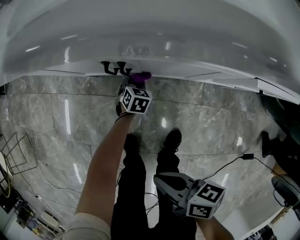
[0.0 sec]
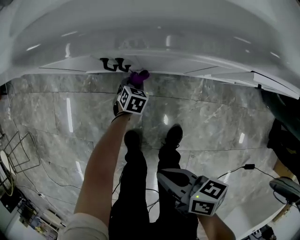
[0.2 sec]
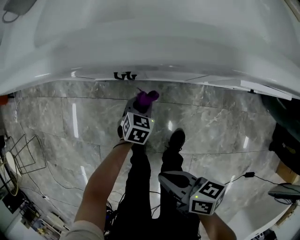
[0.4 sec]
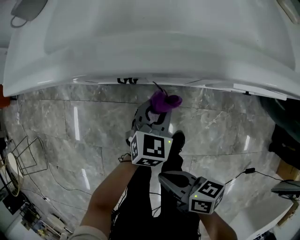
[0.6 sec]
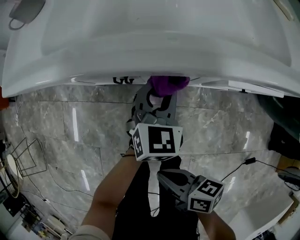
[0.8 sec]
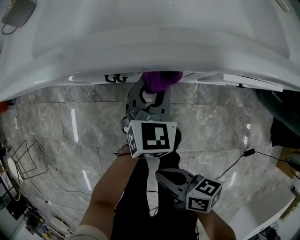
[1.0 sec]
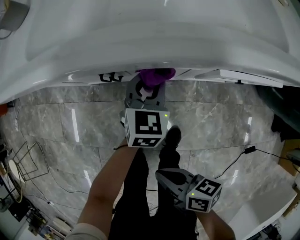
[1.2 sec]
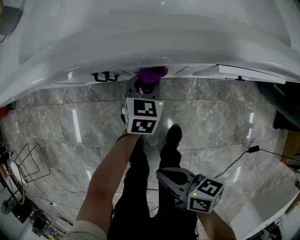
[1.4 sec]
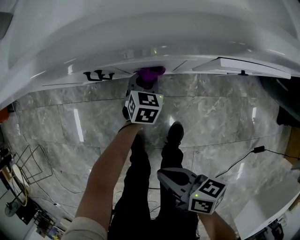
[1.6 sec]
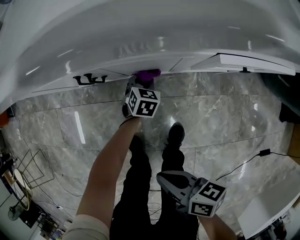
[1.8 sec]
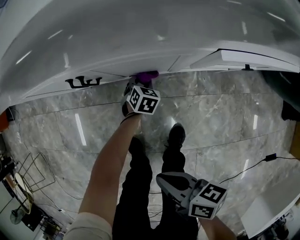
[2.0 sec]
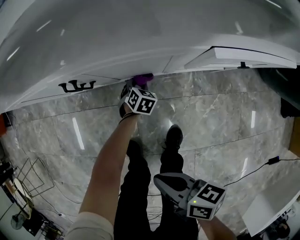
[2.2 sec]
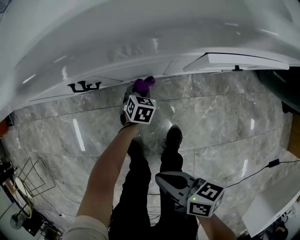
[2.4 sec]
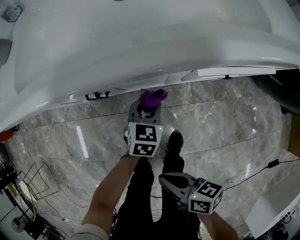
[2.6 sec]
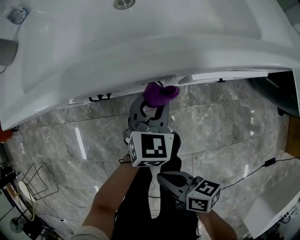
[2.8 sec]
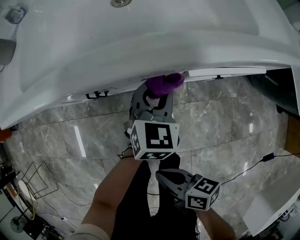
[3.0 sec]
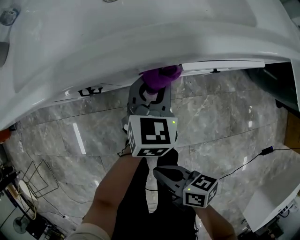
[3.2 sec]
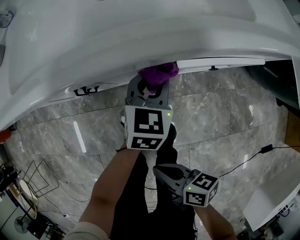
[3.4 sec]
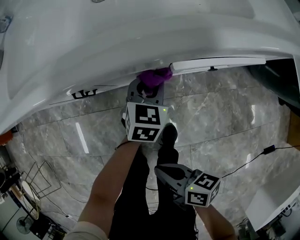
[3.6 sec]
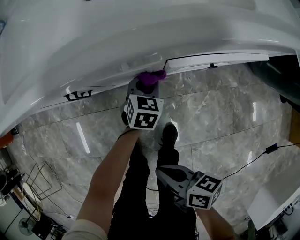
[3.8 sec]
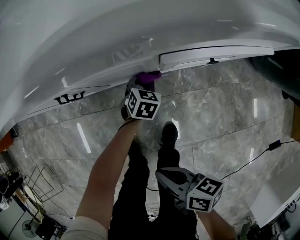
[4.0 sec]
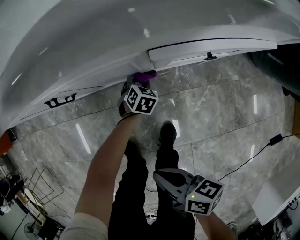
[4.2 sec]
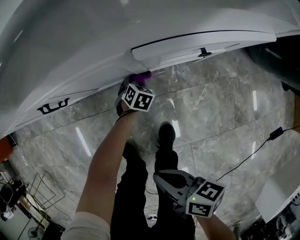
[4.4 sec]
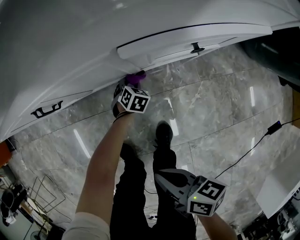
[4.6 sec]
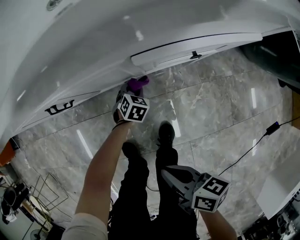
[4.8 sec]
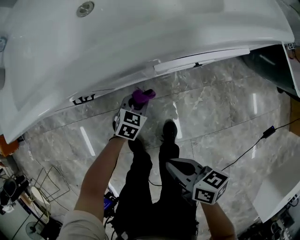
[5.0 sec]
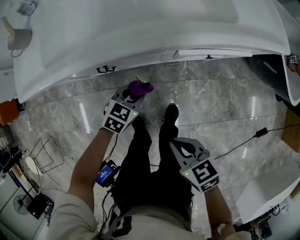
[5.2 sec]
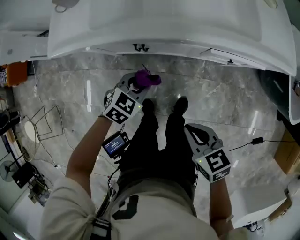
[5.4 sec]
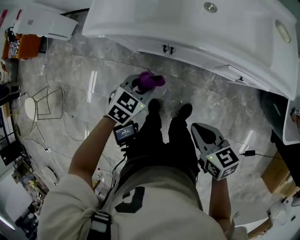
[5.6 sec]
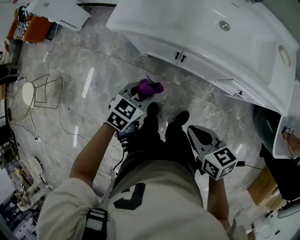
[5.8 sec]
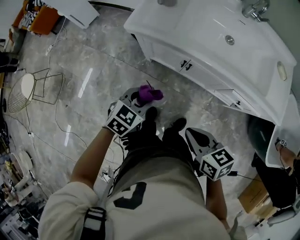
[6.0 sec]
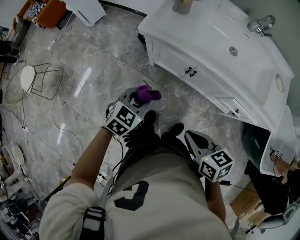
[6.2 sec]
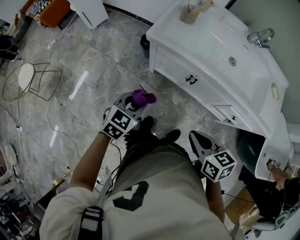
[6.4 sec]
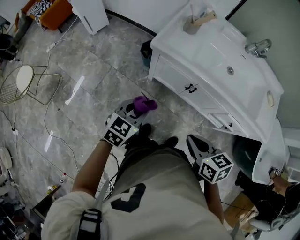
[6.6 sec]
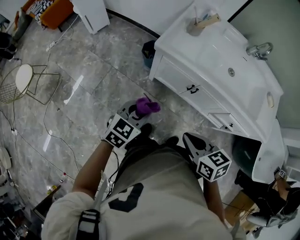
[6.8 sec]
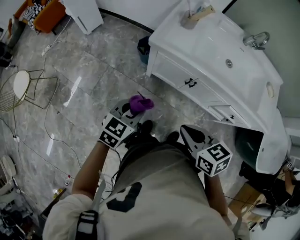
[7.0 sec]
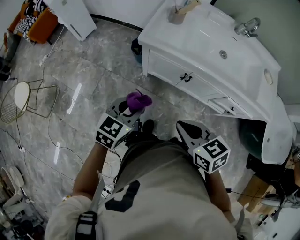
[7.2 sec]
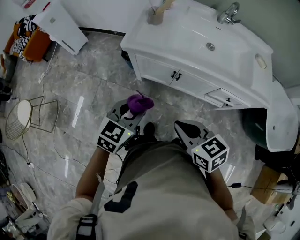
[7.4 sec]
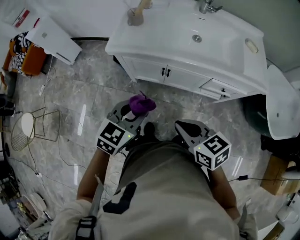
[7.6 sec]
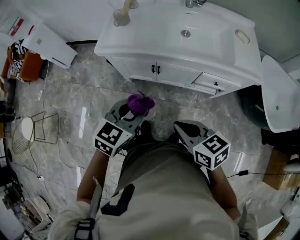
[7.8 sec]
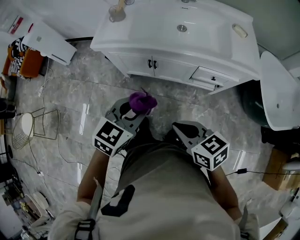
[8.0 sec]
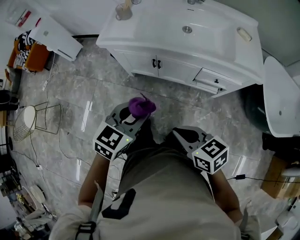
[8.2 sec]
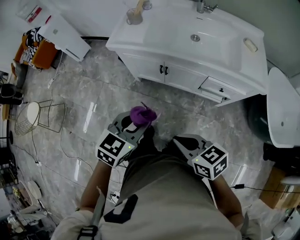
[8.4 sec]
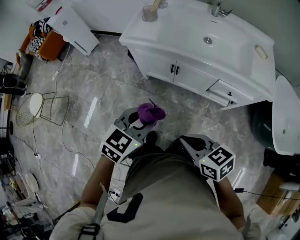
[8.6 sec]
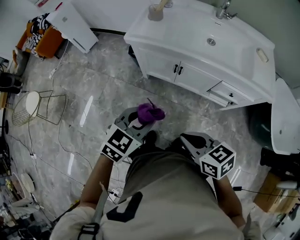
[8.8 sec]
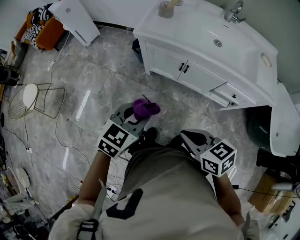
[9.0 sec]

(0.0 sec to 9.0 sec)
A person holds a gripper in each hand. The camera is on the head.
0.0 sec - 1.6 sec: The right gripper changes place by some 5 cm. The left gripper shifts roughly 20 cm upward and to the right.
1.6 sec - 3.0 sec: The left gripper heads upward and to the right, covering approximately 20 cm.
3.0 sec - 4.4 sec: The left gripper is displaced downward by about 35 cm, and tilts its fingers some 30 degrees downward; the right gripper heads downward and to the right, covering approximately 10 cm.
4.4 sec - 6.0 sec: The left gripper goes roughly 60 cm upward, and rotates approximately 30 degrees. The right gripper is displaced upward by about 35 cm, and rotates around the line of its fingers by roughly 50 degrees, counterclockwise from behind.
6.0 sec - 7.6 sec: The left gripper heads upward, covering roughly 15 cm, and reaches approximately 15 cm to the left, then returns. The right gripper heads upward, covering approximately 5 cm, and travels to the left and back again, roughly 10 cm each way.
7.6 sec - 9.0 sec: The two grippers go roughly 10 cm backward and to the left.

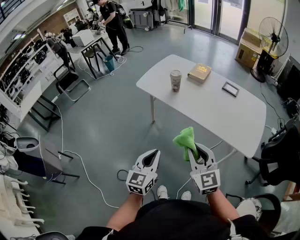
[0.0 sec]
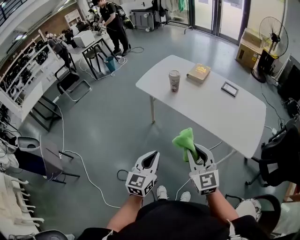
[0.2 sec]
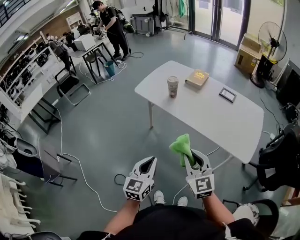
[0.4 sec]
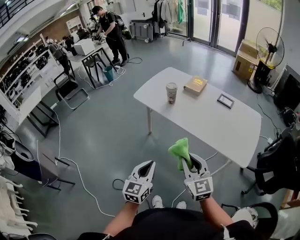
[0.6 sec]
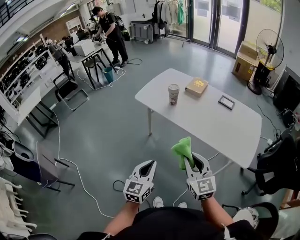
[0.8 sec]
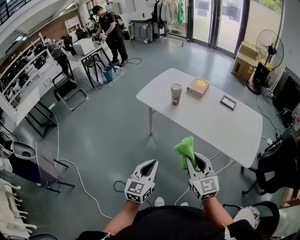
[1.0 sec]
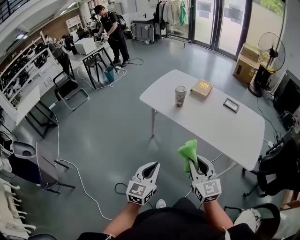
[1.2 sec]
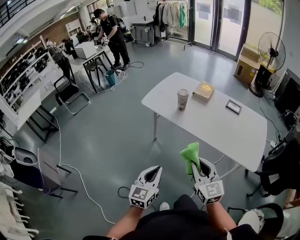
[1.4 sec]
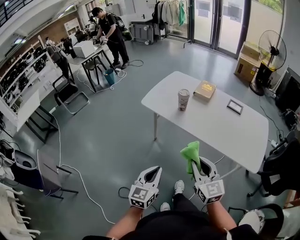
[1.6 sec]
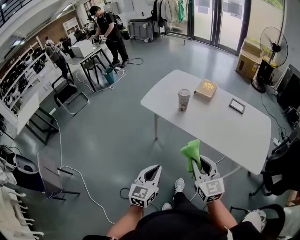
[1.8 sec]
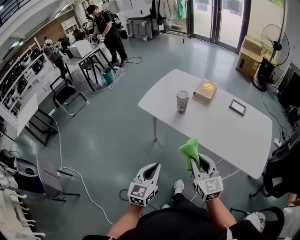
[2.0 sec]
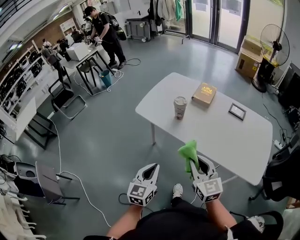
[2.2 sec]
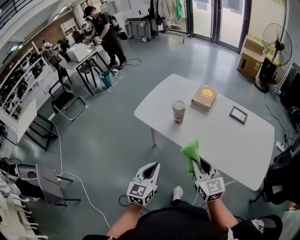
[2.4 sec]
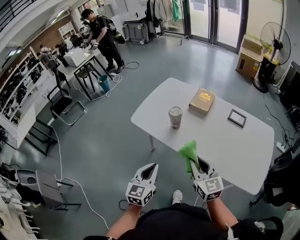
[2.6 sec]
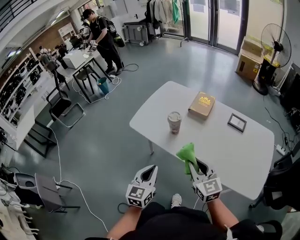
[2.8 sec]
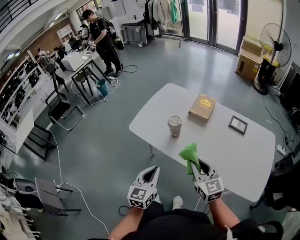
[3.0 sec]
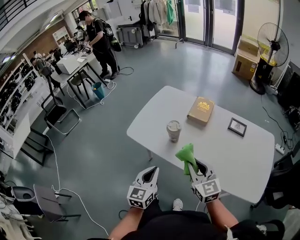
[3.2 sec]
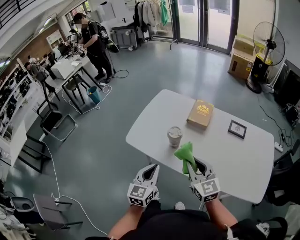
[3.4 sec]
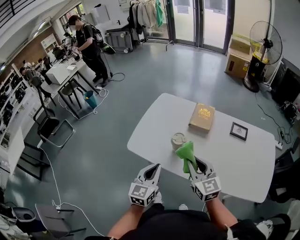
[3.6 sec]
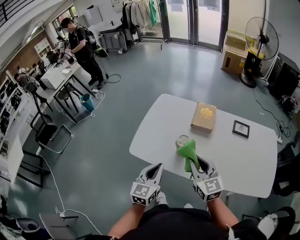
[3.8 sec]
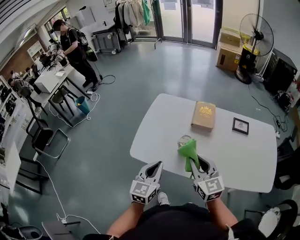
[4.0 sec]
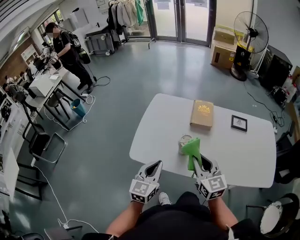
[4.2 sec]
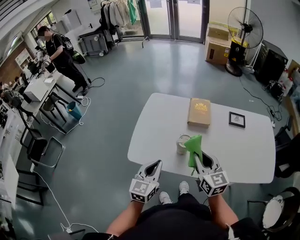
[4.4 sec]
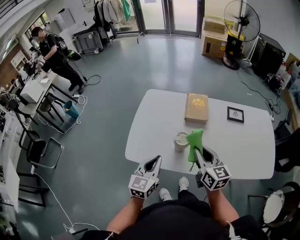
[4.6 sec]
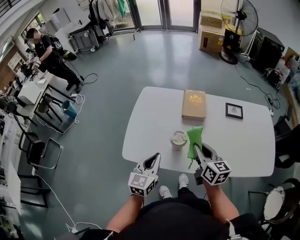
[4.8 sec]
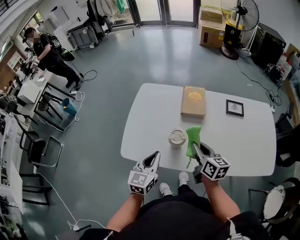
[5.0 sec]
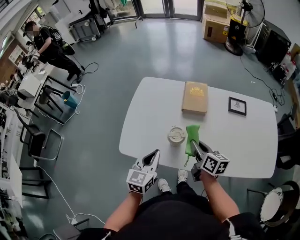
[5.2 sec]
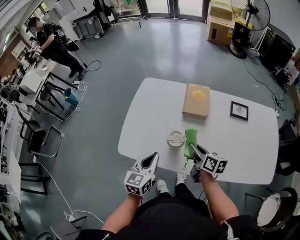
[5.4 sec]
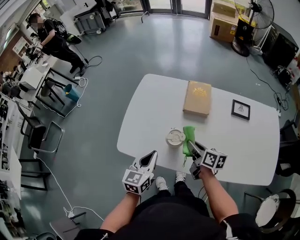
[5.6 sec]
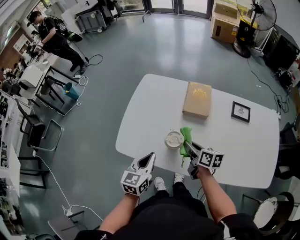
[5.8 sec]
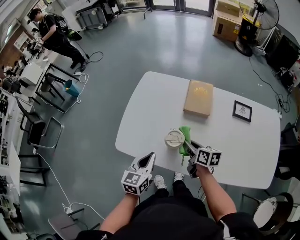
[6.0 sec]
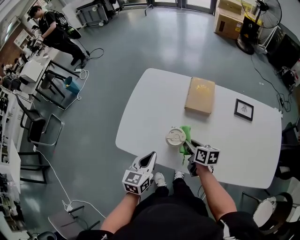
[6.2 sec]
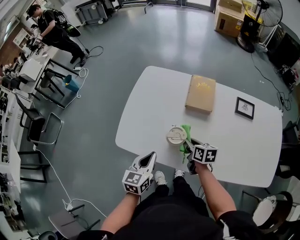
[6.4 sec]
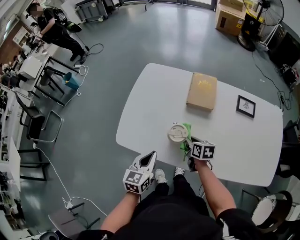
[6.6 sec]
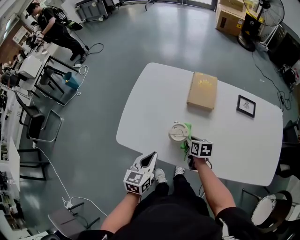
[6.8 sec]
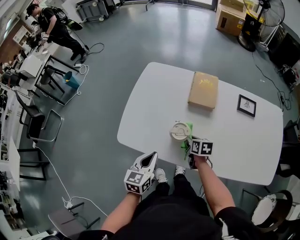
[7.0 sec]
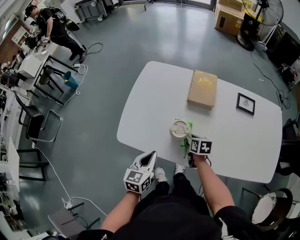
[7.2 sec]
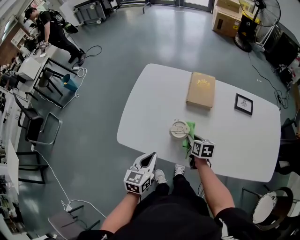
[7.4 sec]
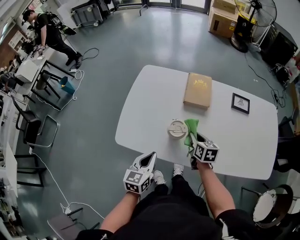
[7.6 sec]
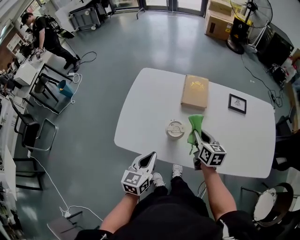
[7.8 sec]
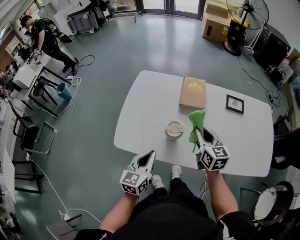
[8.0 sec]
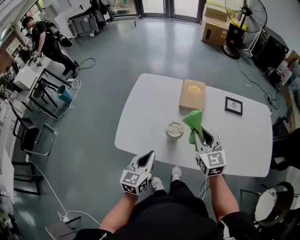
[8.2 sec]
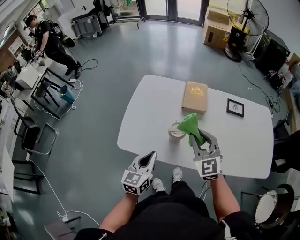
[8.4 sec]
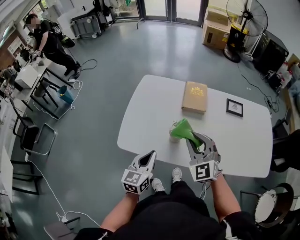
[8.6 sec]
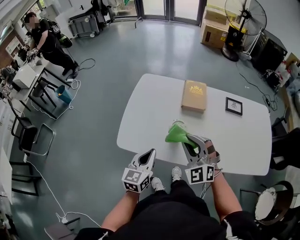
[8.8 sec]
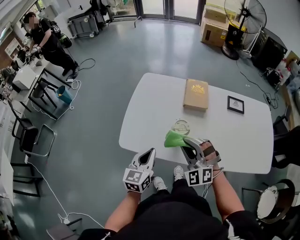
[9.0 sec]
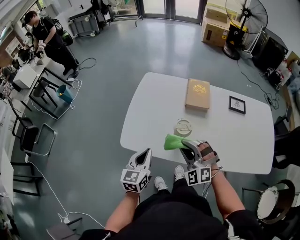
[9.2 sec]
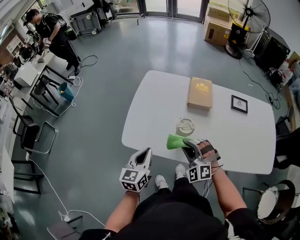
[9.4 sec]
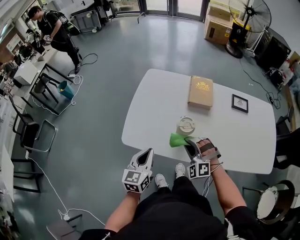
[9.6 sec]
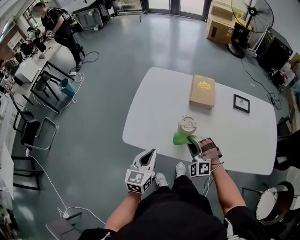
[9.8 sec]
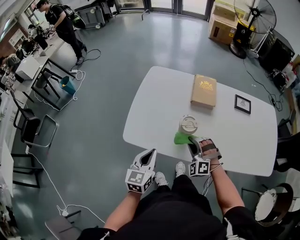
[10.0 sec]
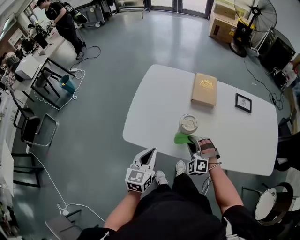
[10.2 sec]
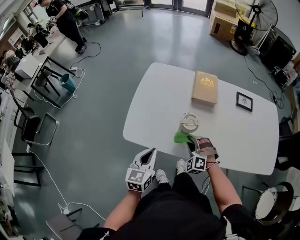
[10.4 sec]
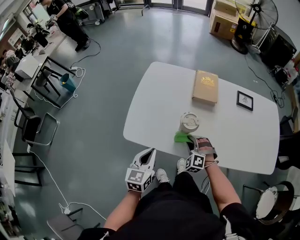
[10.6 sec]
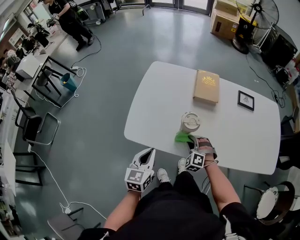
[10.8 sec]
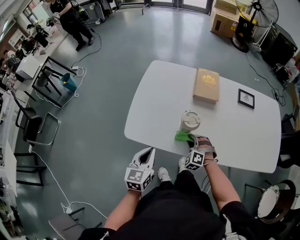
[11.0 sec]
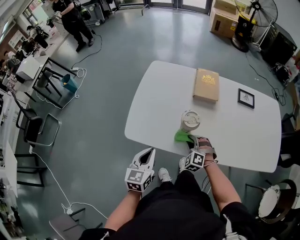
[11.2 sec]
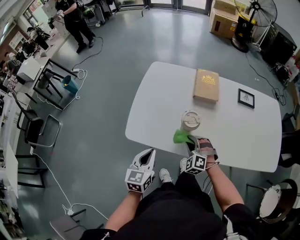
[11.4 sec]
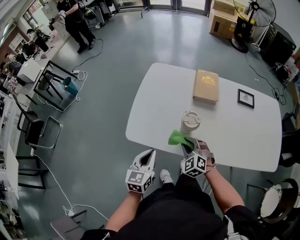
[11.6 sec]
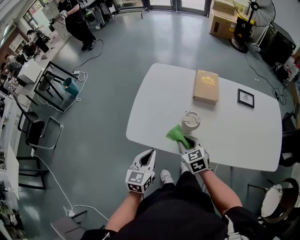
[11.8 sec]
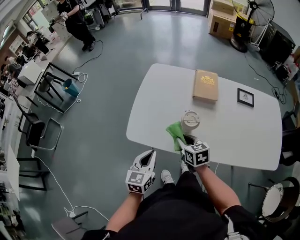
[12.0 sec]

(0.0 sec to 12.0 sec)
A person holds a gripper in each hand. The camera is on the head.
0.0 sec - 1.6 sec: The right gripper moves some 5 cm; the left gripper is displaced to the left by about 5 cm.
1.6 sec - 3.0 sec: The two grippers go about 25 cm forward.
3.0 sec - 4.4 sec: Both grippers travel together forward and to the left, about 20 cm. The left gripper changes its angle by roughly 20 degrees, while the right gripper changes its angle by about 30 degrees.
4.4 sec - 6.0 sec: The right gripper moves downward and forward, some 20 cm, and changes its angle by some 40 degrees; the left gripper moves downward, about 10 cm.
6.0 sec - 7.6 sec: The right gripper moves approximately 10 cm downward and comes back, and swivels roughly 20 degrees.
7.6 sec - 9.0 sec: The right gripper travels upward, to the left and backward by some 20 cm, and rolls counterclockwise, seen from behind, by roughly 90 degrees, while the left gripper ends up approximately 5 cm from where it was.
9.0 sec - 10.4 sec: The right gripper travels downward by approximately 20 cm, and swivels about 20 degrees.
10.4 sec - 12.0 sec: The right gripper moves upward and to the left, some 10 cm, and rolls clockwise, seen from behind, by some 80 degrees.

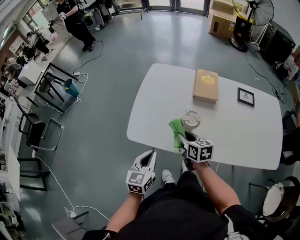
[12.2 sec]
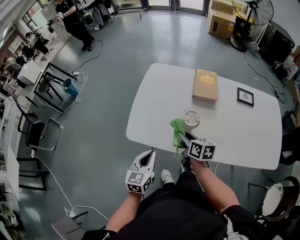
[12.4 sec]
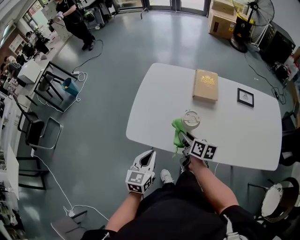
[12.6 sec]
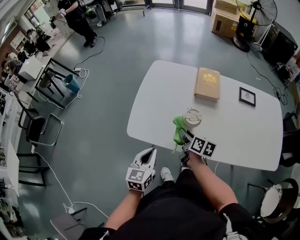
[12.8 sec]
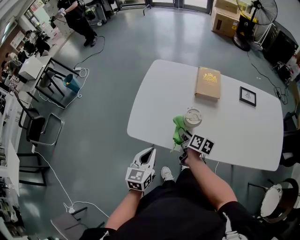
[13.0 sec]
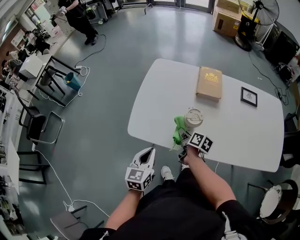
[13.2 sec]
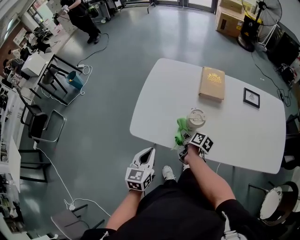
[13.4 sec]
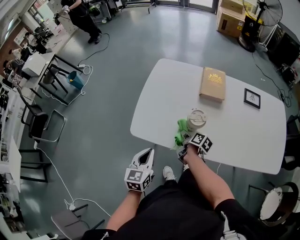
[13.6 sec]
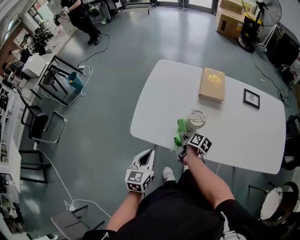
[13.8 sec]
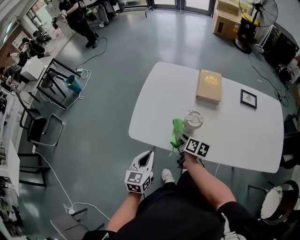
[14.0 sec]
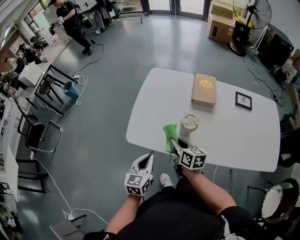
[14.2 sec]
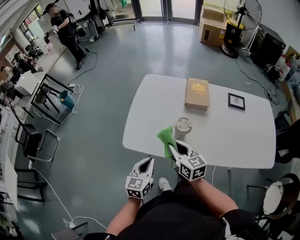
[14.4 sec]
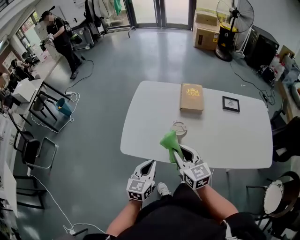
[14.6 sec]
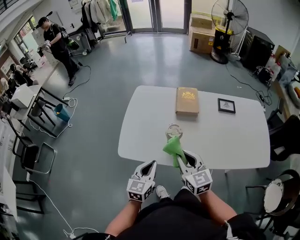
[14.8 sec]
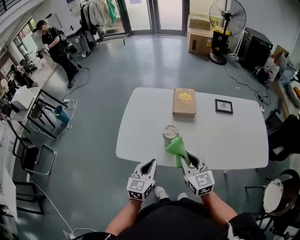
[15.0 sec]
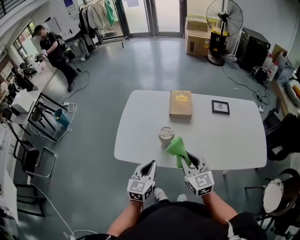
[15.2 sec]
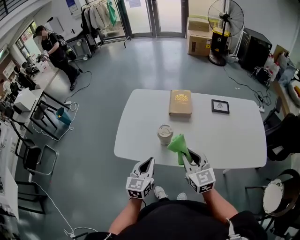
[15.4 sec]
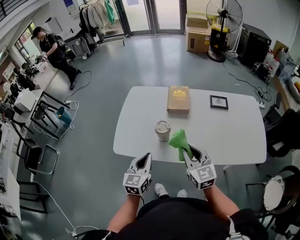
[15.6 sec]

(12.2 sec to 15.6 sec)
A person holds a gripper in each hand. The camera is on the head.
12.2 sec - 13.8 sec: The right gripper goes some 10 cm downward, and twists roughly 40 degrees clockwise, seen from behind.
13.8 sec - 15.6 sec: The left gripper heads to the right and upward, covering roughly 15 cm; the right gripper travels upward and to the right by about 30 cm, and rolls counterclockwise, seen from behind, by roughly 70 degrees.
